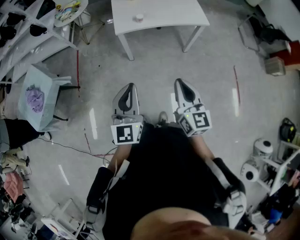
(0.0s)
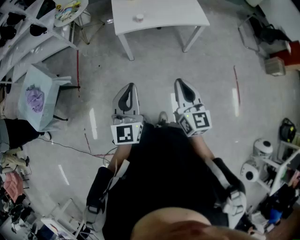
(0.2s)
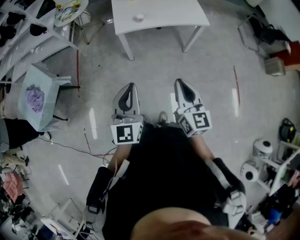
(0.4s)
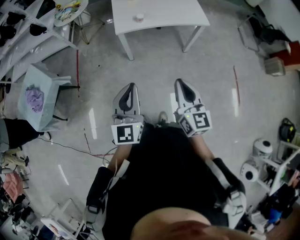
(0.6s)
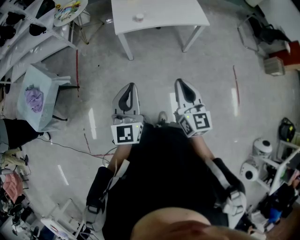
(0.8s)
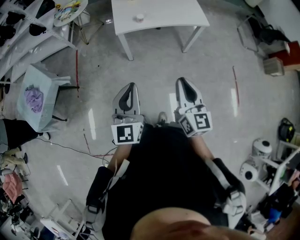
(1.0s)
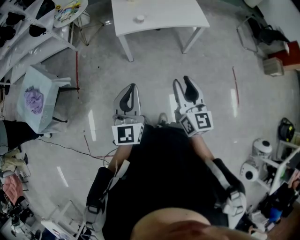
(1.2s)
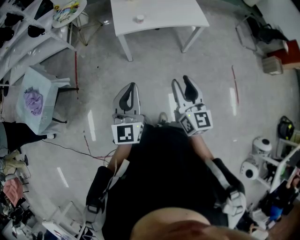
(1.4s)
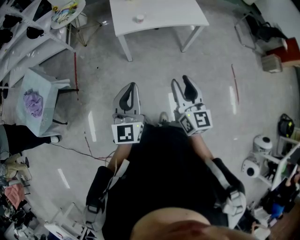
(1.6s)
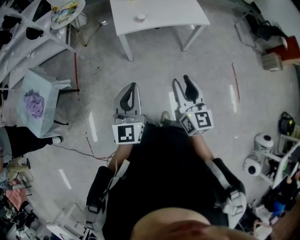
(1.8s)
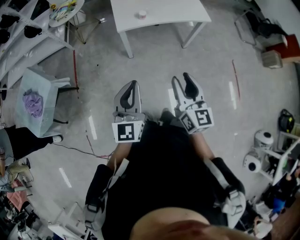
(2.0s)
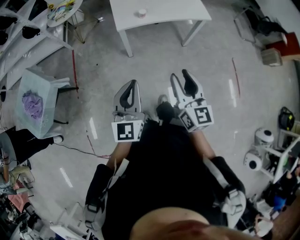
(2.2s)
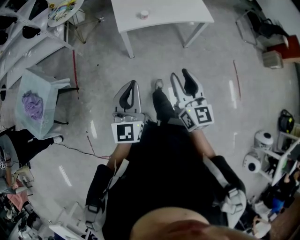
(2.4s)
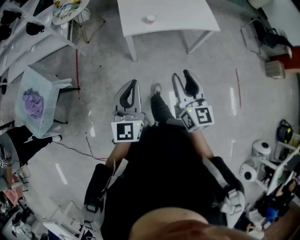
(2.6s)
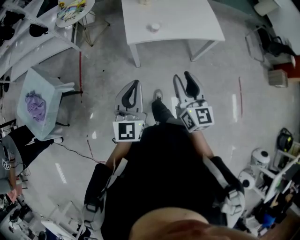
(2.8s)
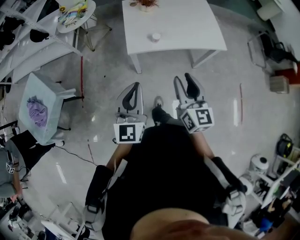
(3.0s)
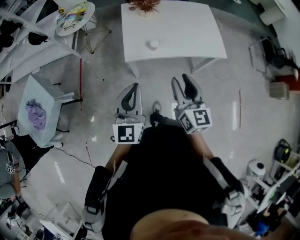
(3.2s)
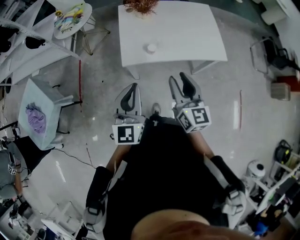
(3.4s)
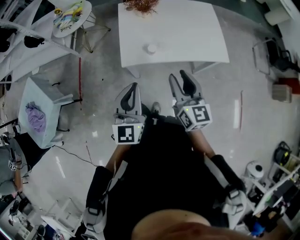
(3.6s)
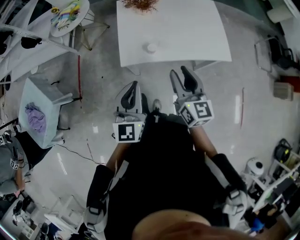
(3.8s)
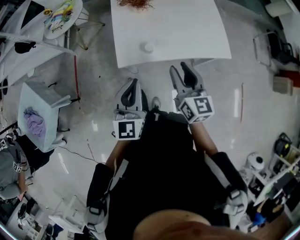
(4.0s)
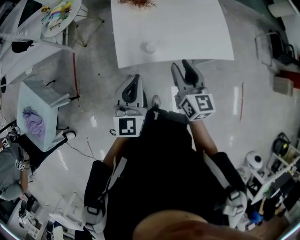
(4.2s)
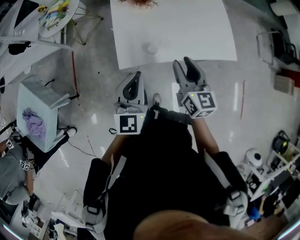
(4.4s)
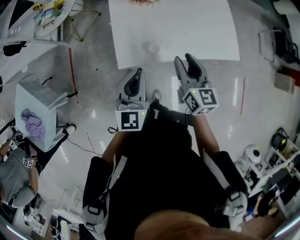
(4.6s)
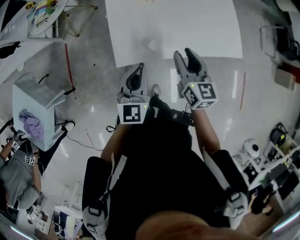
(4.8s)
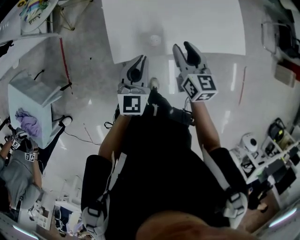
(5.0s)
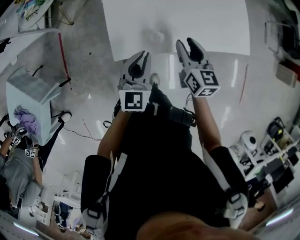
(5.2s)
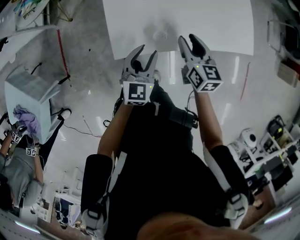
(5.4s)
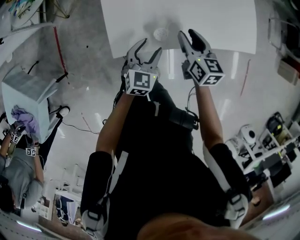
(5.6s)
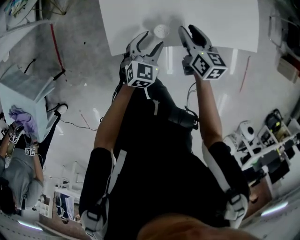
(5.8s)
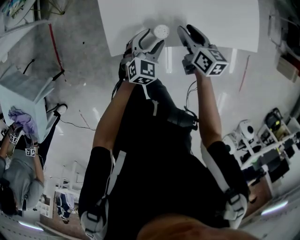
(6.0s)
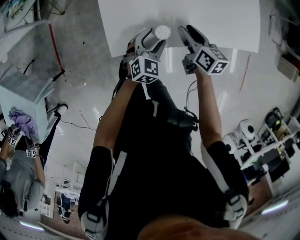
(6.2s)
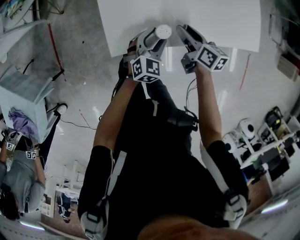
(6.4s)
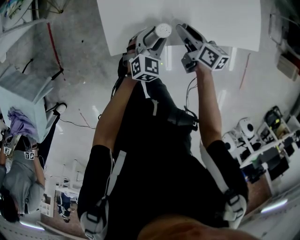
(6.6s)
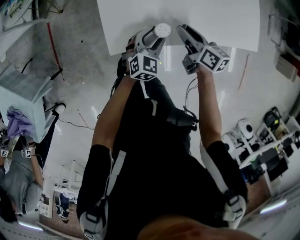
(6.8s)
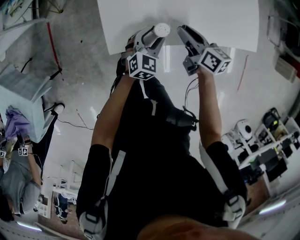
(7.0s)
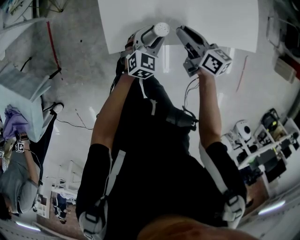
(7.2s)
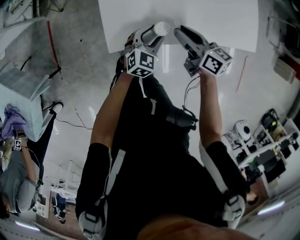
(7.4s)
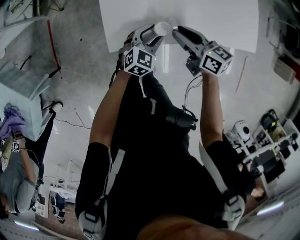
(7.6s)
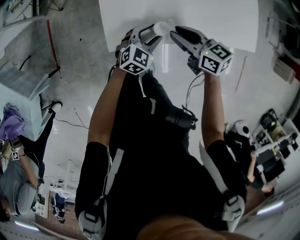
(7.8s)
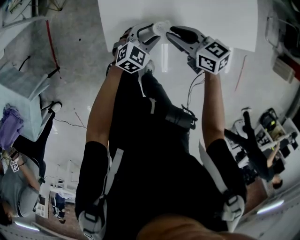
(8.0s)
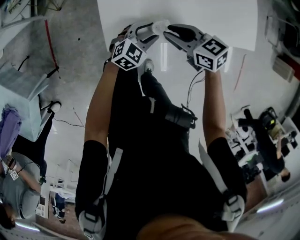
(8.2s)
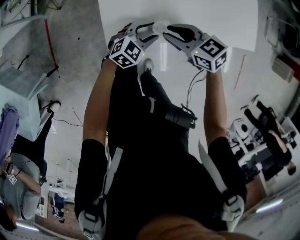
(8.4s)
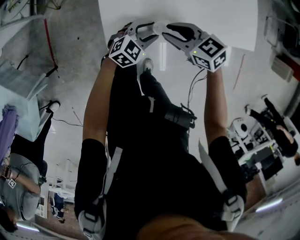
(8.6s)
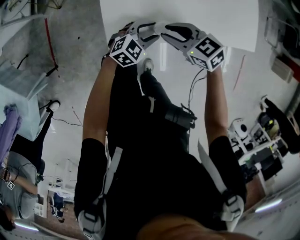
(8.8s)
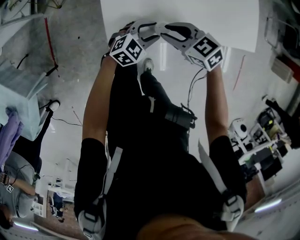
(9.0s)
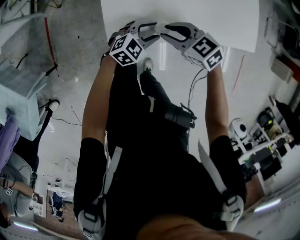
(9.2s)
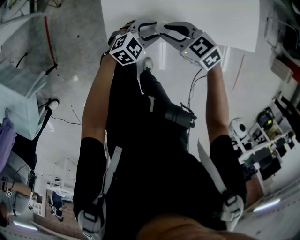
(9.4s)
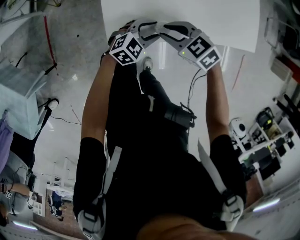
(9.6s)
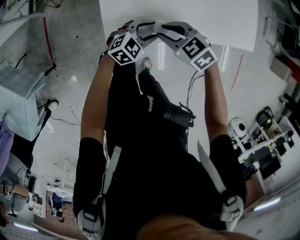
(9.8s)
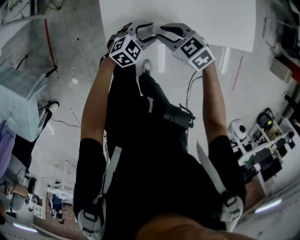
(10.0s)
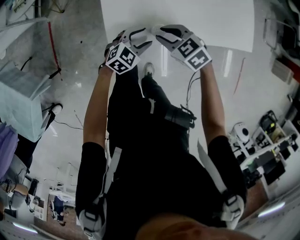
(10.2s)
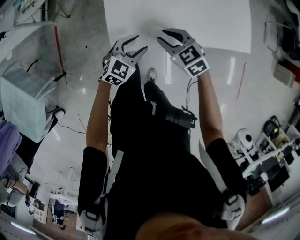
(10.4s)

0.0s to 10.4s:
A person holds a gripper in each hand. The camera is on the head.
0.0s to 1.4s: The right gripper opens.
1.4s to 3.0s: The two grippers go some 25 cm forward.
3.0s to 4.4s: Both grippers move forward, about 30 cm.
4.4s to 6.0s: The two grippers go approximately 30 cm downward and forward. The left gripper rotates some 30 degrees, and opens its fingers. The right gripper turns by approximately 30 degrees.
6.0s to 7.4s: The right gripper changes its angle by about 20 degrees.
7.4s to 9.0s: The left gripper rotates about 20 degrees, while the right gripper changes place by some 5 cm, and swivels some 50 degrees.
9.0s to 10.4s: The left gripper ends up approximately 10 cm from where it was.

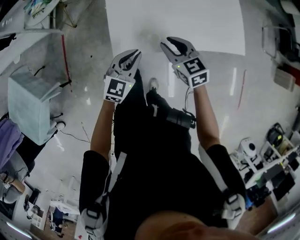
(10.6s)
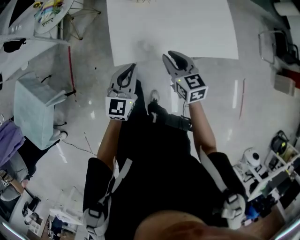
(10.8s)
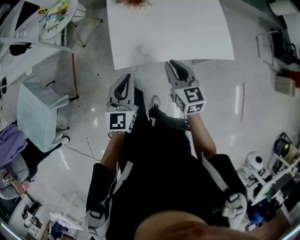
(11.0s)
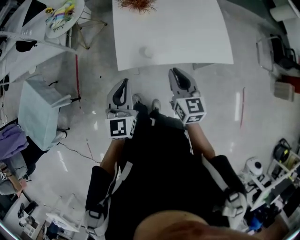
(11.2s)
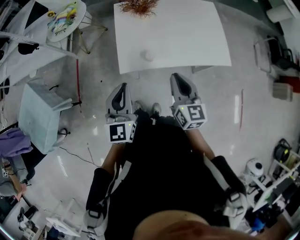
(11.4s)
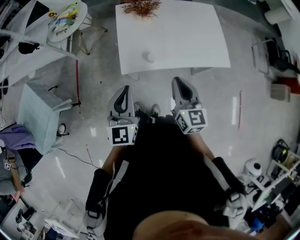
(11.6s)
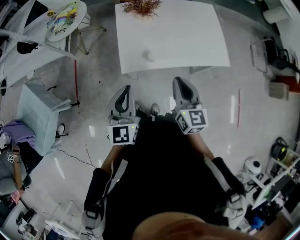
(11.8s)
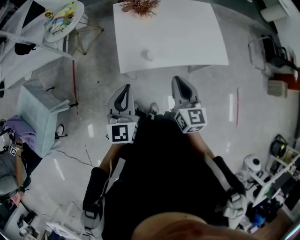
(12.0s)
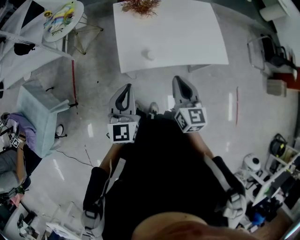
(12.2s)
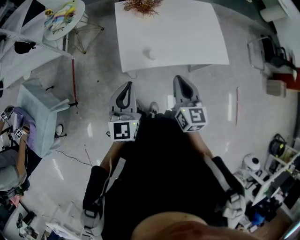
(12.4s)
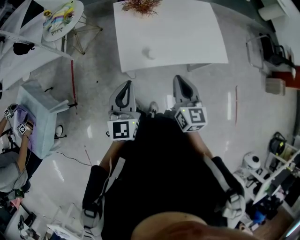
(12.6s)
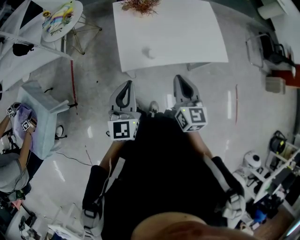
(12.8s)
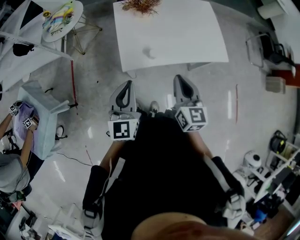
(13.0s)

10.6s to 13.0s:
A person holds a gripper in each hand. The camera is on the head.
10.6s to 11.8s: The grippers both shift upward and backward by approximately 25 cm. The right gripper turns by about 30 degrees, and closes up. The left gripper swivels some 30 degrees.
11.8s to 13.0s: The grippers make only small movements.

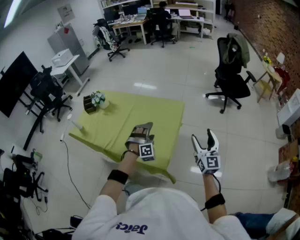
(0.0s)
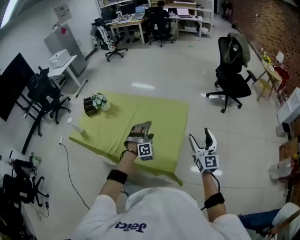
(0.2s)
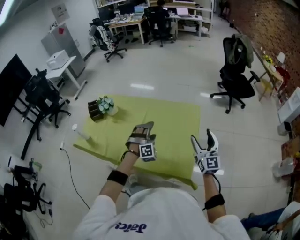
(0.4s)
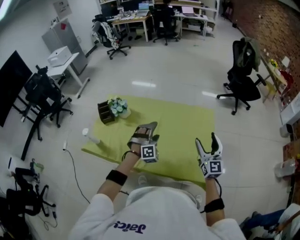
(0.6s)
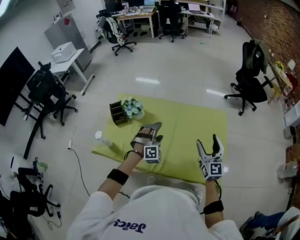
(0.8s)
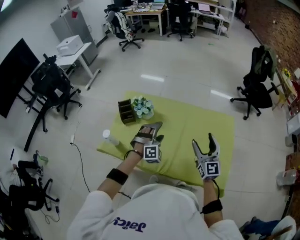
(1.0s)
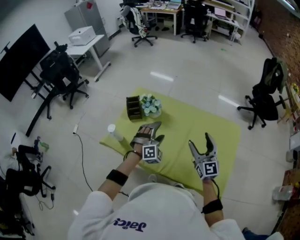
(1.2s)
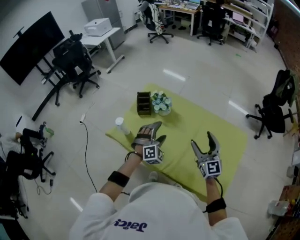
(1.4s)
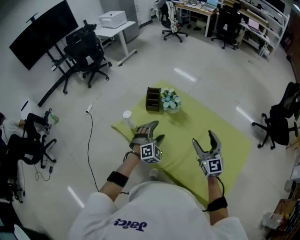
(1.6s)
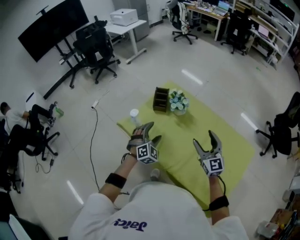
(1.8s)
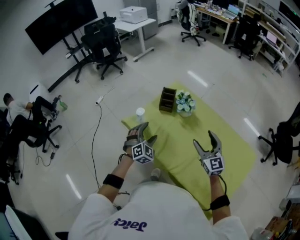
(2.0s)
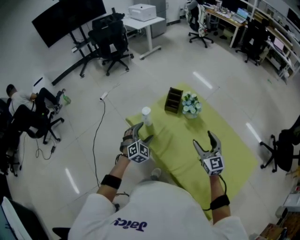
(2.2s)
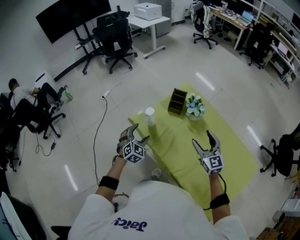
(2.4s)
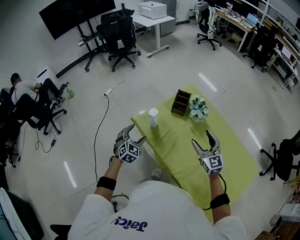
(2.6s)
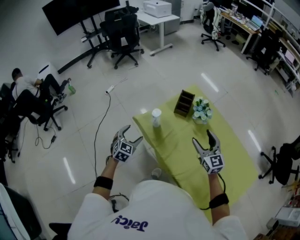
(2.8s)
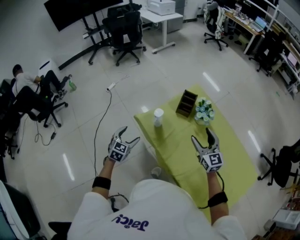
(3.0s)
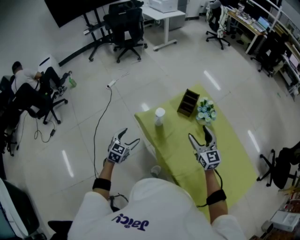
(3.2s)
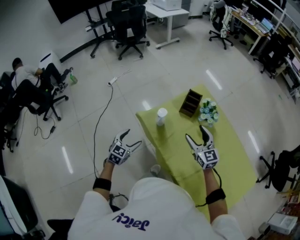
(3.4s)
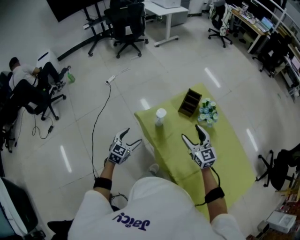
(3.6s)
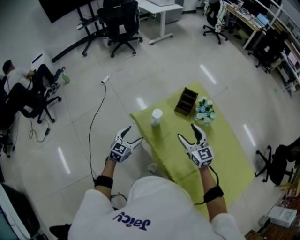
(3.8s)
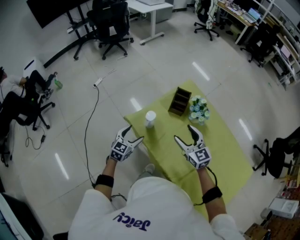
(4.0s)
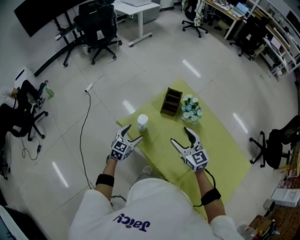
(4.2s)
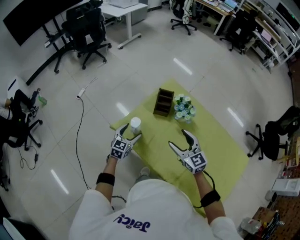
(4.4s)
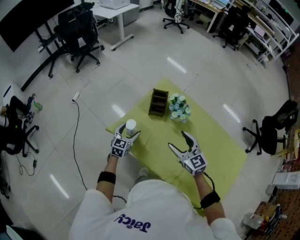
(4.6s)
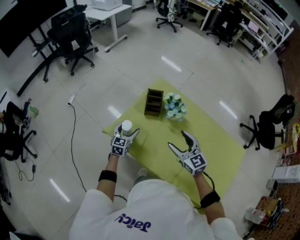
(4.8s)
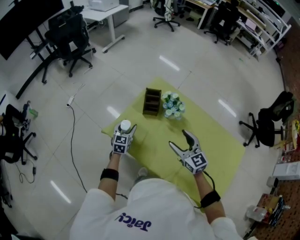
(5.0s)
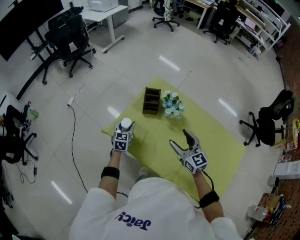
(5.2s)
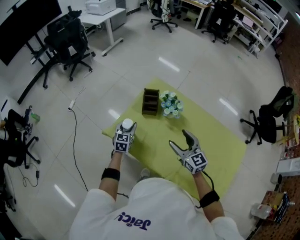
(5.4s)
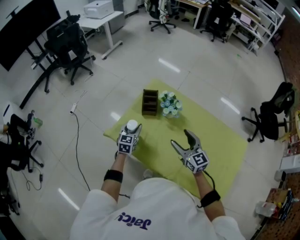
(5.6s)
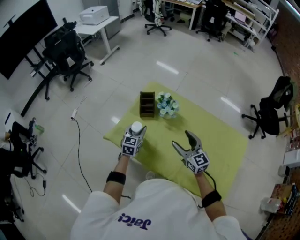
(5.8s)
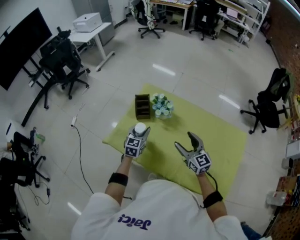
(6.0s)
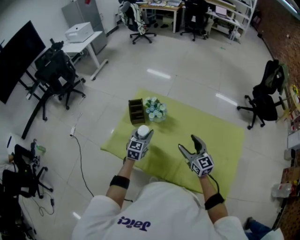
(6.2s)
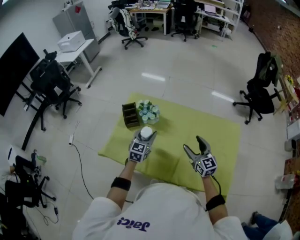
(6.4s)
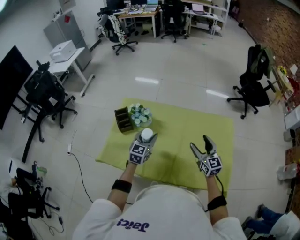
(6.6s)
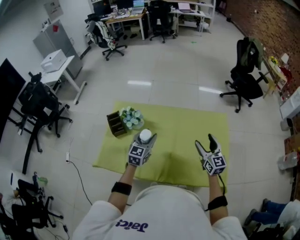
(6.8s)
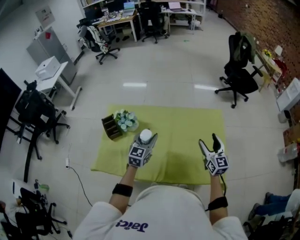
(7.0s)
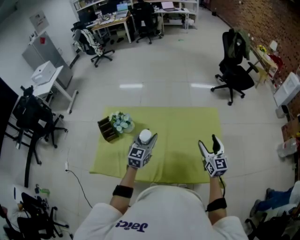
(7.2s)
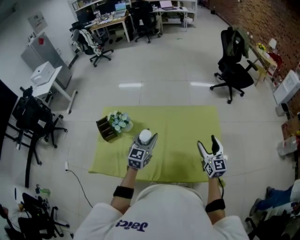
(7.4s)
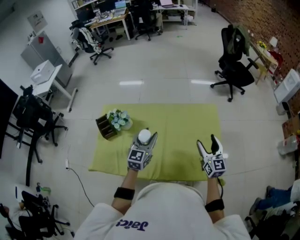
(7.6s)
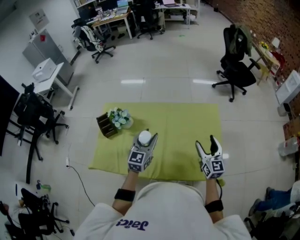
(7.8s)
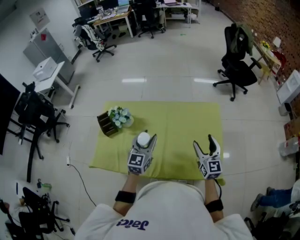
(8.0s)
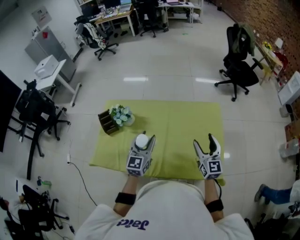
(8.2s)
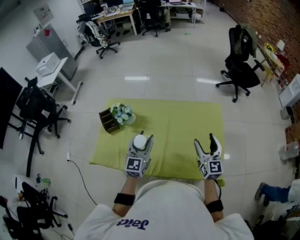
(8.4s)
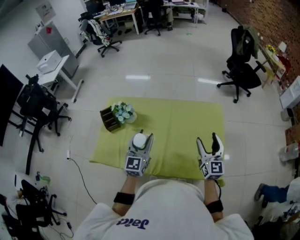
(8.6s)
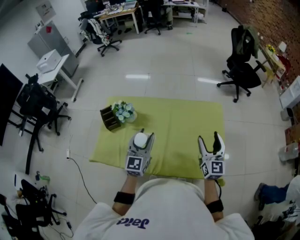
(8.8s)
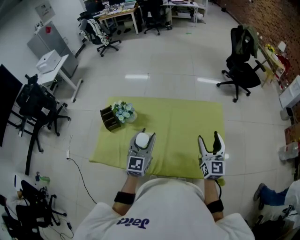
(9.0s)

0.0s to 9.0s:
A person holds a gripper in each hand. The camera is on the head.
0.0s to 1.6s: The pair of grippers is taken approximately 60 cm. The left gripper rotates roughly 30 degrees. The right gripper swivels approximately 30 degrees.
1.6s to 3.0s: The left gripper is displaced to the left by about 30 cm, and rotates around the line of its fingers by some 50 degrees, counterclockwise from behind. The right gripper shifts some 20 cm to the left and forward, and turns by approximately 20 degrees.
3.0s to 4.4s: The left gripper goes about 15 cm to the right and forward.
4.4s to 6.0s: The right gripper travels to the right and backward by approximately 15 cm, and changes its angle by some 20 degrees. The left gripper is displaced to the right by roughly 15 cm, and closes up.
6.0s to 7.6s: The right gripper changes place by roughly 35 cm, and rotates some 40 degrees; the left gripper ends up roughly 30 cm from where it was, and swivels roughly 30 degrees.
7.6s to 9.0s: The left gripper travels backward by some 5 cm. Meanwhile the right gripper shifts about 5 cm upward.

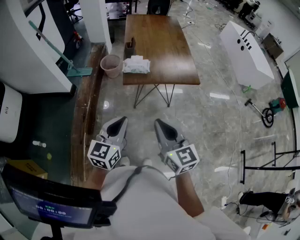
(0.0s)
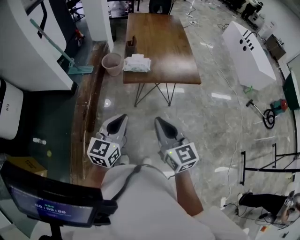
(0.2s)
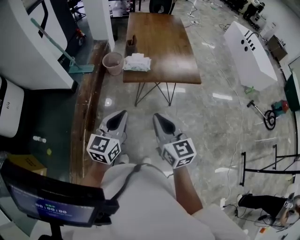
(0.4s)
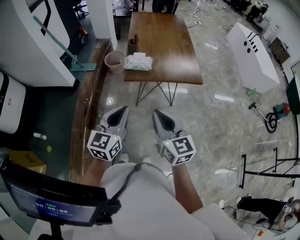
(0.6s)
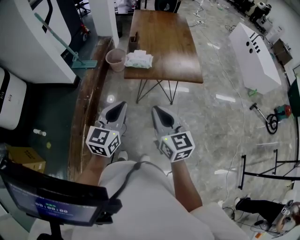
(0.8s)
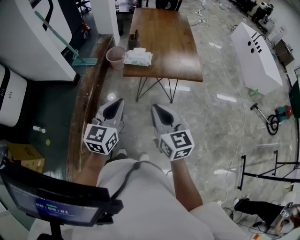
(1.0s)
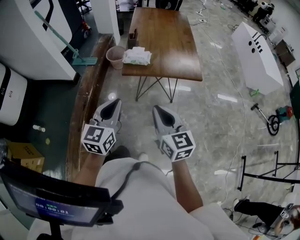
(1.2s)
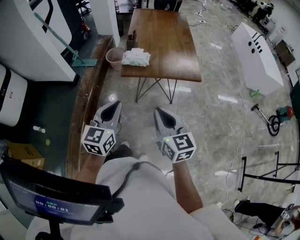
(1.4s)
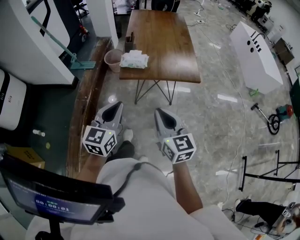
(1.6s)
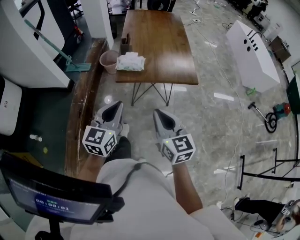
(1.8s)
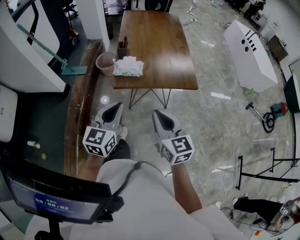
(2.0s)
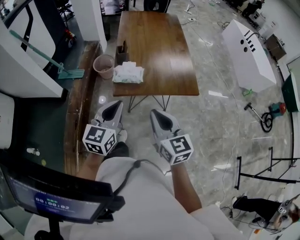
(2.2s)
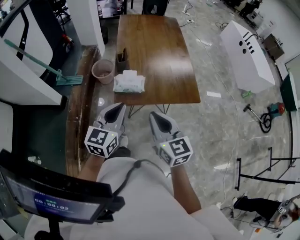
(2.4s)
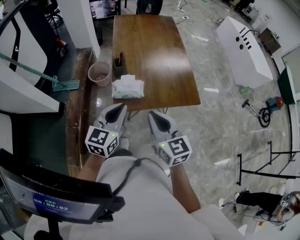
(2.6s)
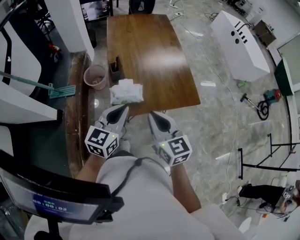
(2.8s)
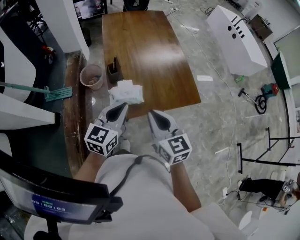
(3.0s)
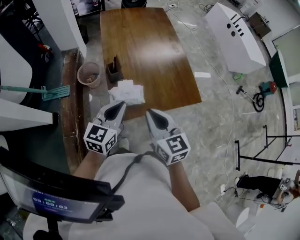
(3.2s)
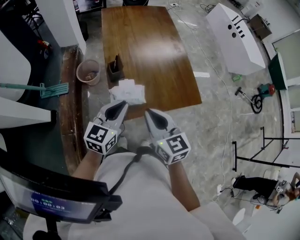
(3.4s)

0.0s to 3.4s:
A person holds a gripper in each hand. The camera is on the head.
0.0s to 1.6s: Both grippers move to the right, about 5 cm.
1.6s to 3.4s: The left gripper is displaced forward by about 35 cm, and changes its angle by some 20 degrees, while the right gripper moves forward and to the left, approximately 35 cm.
